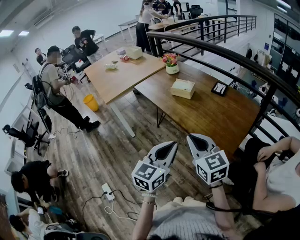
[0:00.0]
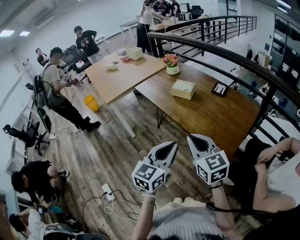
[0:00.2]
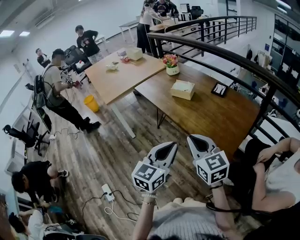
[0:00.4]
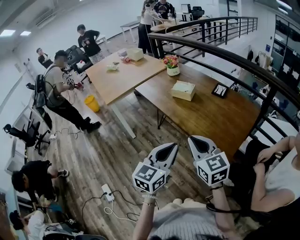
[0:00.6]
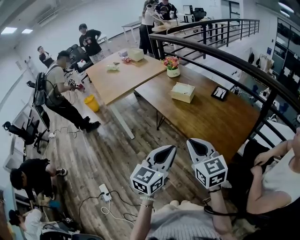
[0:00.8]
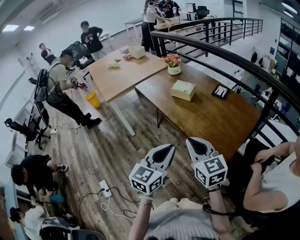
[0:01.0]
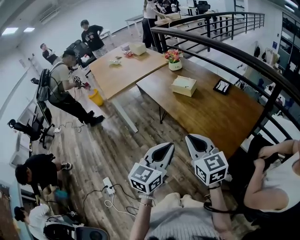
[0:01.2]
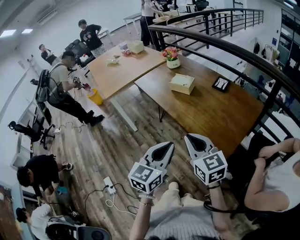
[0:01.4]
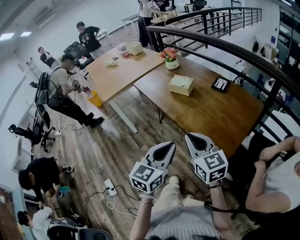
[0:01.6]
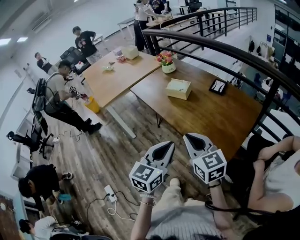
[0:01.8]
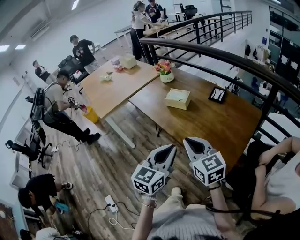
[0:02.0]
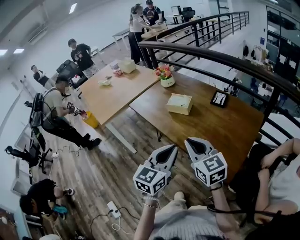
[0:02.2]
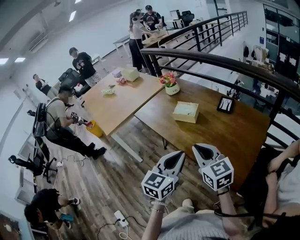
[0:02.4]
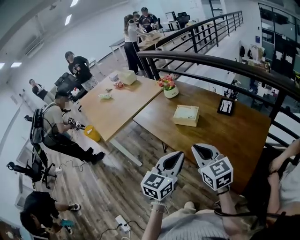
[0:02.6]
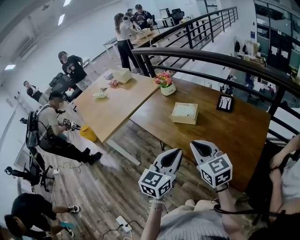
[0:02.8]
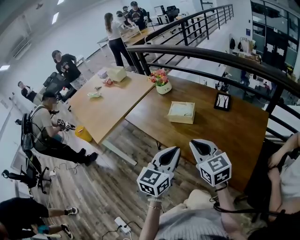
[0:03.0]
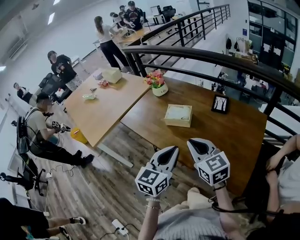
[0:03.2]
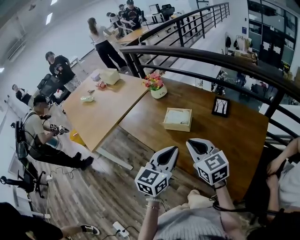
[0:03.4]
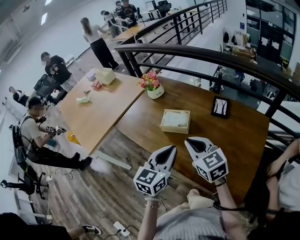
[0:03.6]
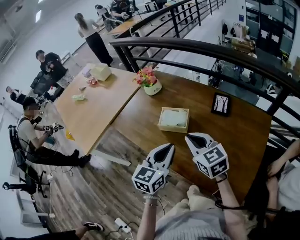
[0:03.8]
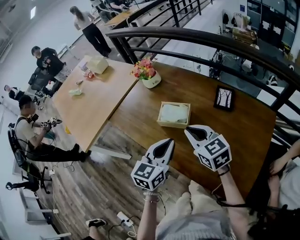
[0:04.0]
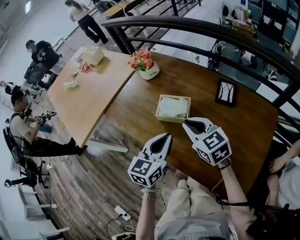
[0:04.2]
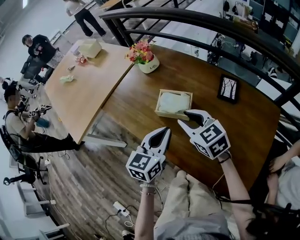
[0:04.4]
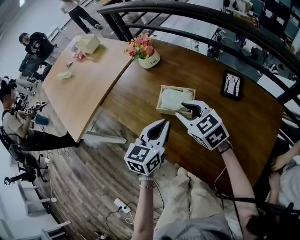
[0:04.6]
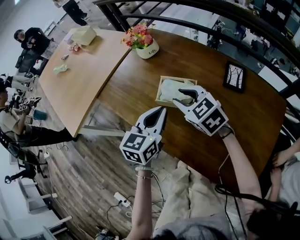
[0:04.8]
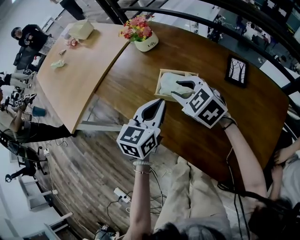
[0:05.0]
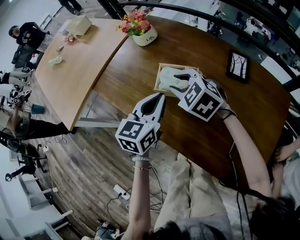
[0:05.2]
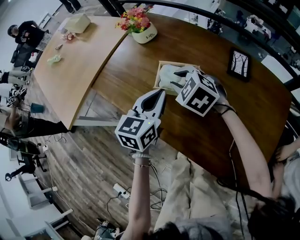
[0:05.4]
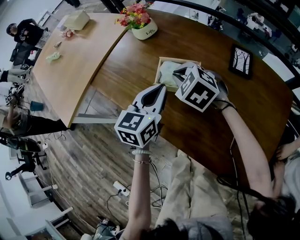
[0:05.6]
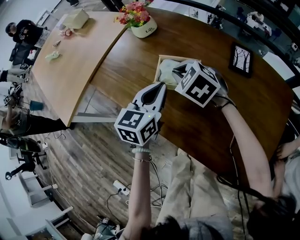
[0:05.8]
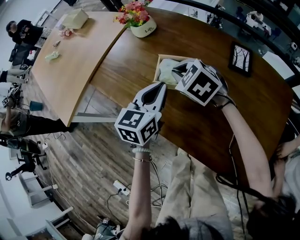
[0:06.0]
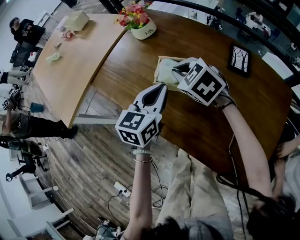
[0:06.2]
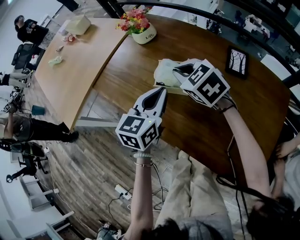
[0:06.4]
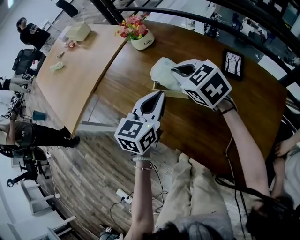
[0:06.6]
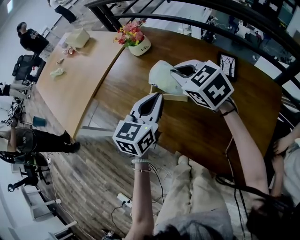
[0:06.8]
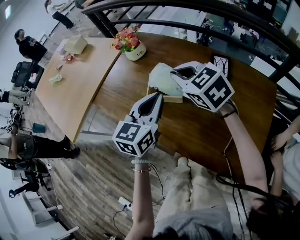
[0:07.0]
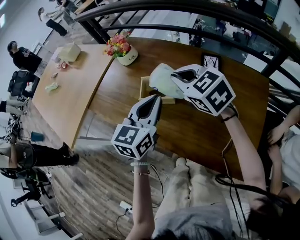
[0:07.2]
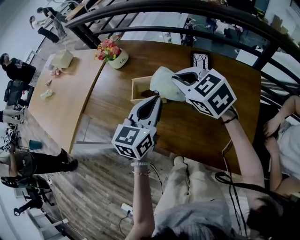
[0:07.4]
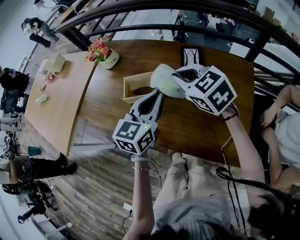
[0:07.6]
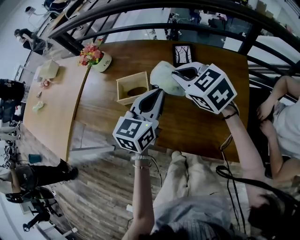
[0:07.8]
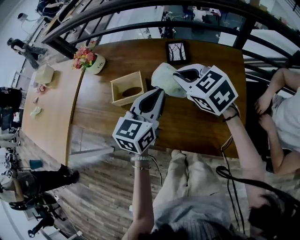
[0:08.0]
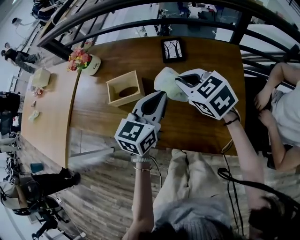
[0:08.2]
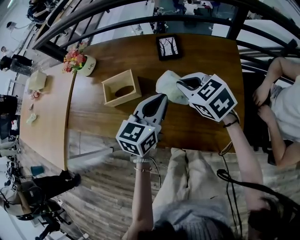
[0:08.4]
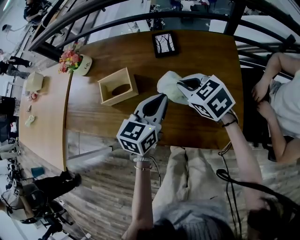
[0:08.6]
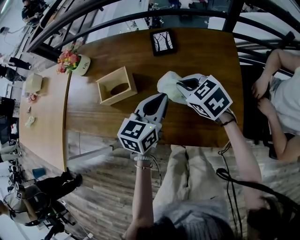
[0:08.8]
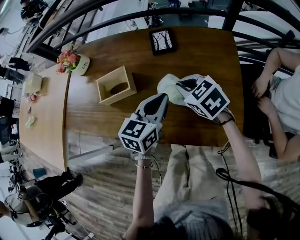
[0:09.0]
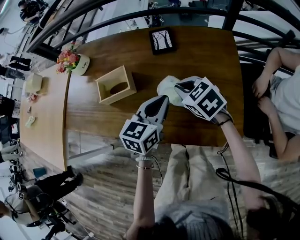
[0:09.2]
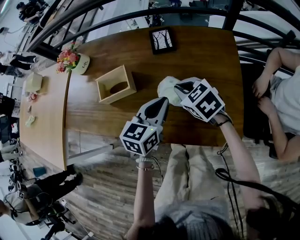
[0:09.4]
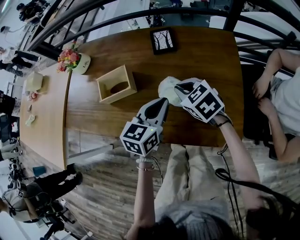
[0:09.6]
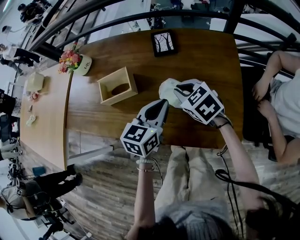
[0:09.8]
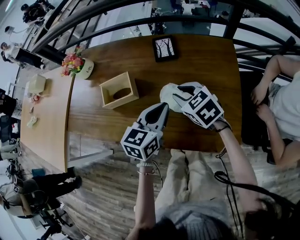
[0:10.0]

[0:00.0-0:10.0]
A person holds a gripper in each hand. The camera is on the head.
0:00.0 to 0:01.4: The grippers stay close to where they were, moving slightly.
0:01.4 to 0:02.8: Both grippers move forward, approximately 20 cm.
0:02.8 to 0:04.2: Both grippers travel together forward, approximately 20 cm.
0:04.2 to 0:05.8: The right gripper shifts roughly 15 cm forward, downward and to the left, turns by approximately 30 degrees, and opens, then closes once more; the left gripper heads forward and downward, covering approximately 10 cm.
0:05.8 to 0:07.2: The left gripper travels upward and to the right by roughly 10 cm; the right gripper shifts about 15 cm upward and to the right, and swivels some 20 degrees.
0:07.2 to 0:08.6: The right gripper moves to the right, downward and backward, approximately 20 cm, and changes its angle by roughly 20 degrees, while the left gripper shifts some 15 cm to the right and downward, and swivels roughly 20 degrees.
0:08.6 to 0:10.0: The right gripper opens.

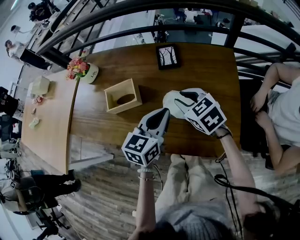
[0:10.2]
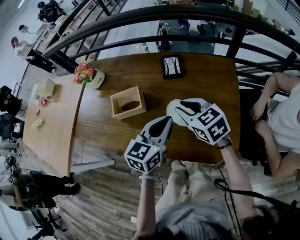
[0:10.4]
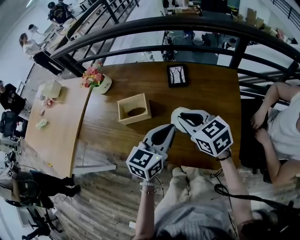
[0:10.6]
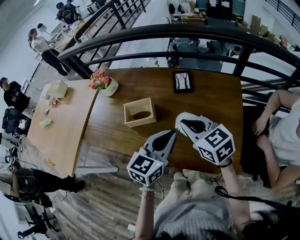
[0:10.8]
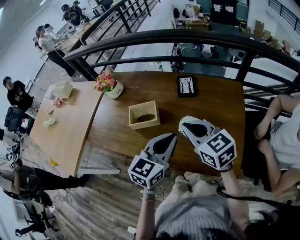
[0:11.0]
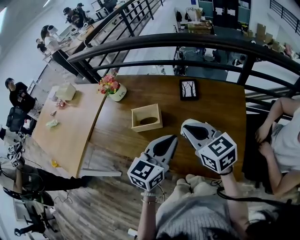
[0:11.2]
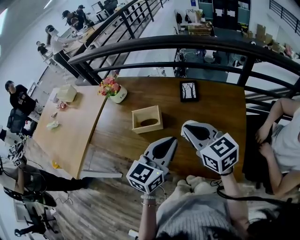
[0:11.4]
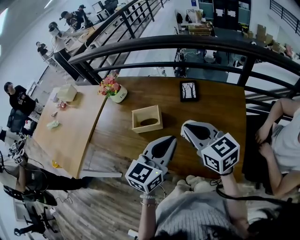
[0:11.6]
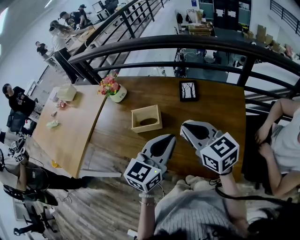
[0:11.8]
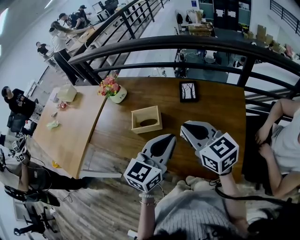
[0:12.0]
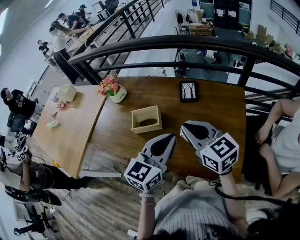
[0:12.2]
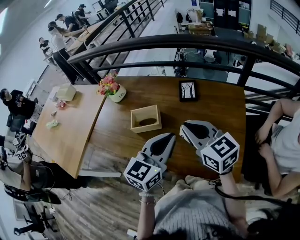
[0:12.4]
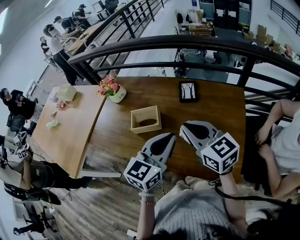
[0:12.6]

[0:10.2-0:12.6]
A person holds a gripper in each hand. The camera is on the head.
0:10.2 to 0:11.4: Both grippers move upward, approximately 10 cm. The right gripper turns by about 20 degrees, and closes.
0:11.4 to 0:12.6: The grippers make only small movements.

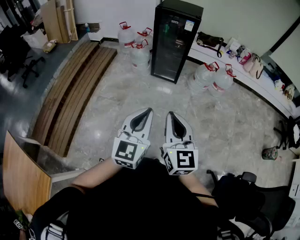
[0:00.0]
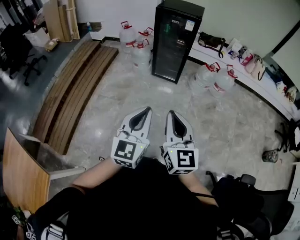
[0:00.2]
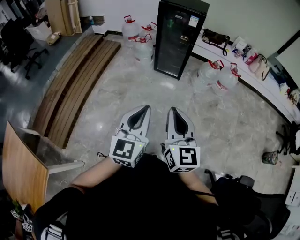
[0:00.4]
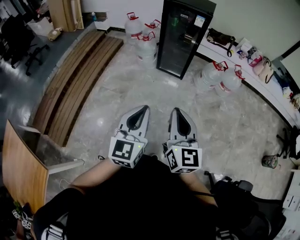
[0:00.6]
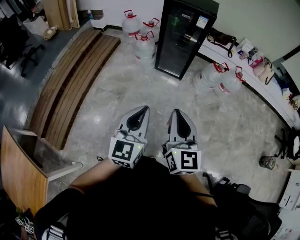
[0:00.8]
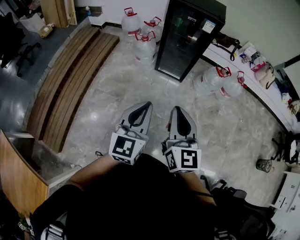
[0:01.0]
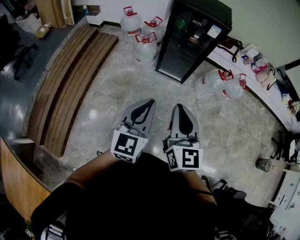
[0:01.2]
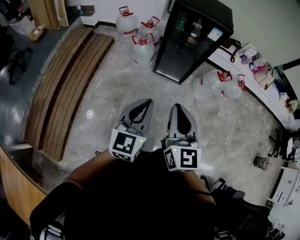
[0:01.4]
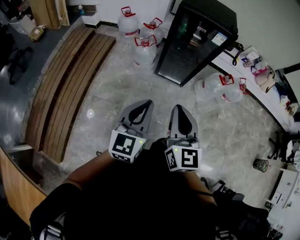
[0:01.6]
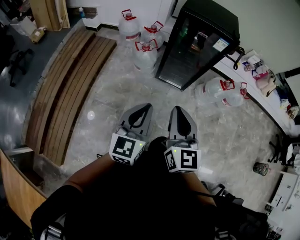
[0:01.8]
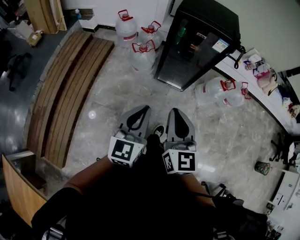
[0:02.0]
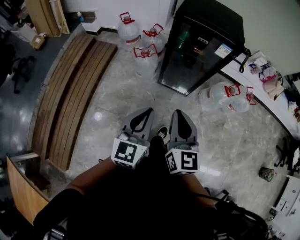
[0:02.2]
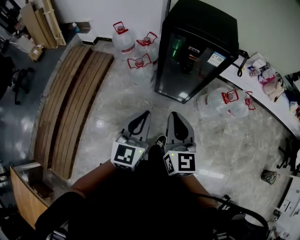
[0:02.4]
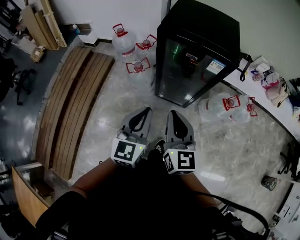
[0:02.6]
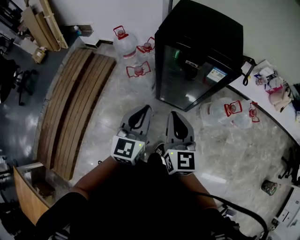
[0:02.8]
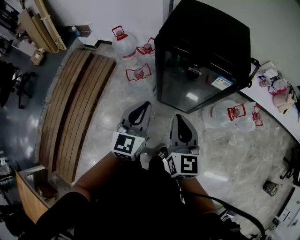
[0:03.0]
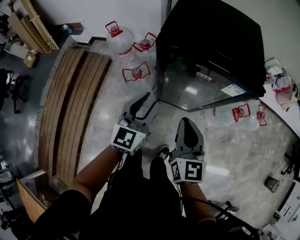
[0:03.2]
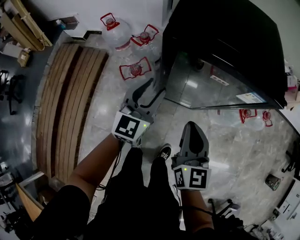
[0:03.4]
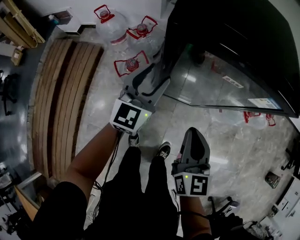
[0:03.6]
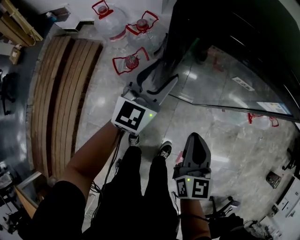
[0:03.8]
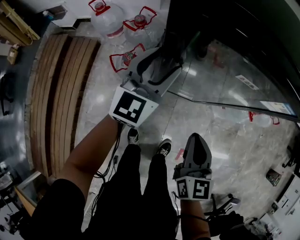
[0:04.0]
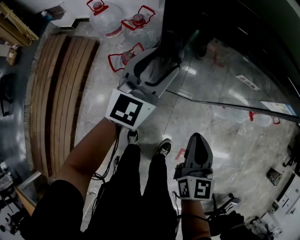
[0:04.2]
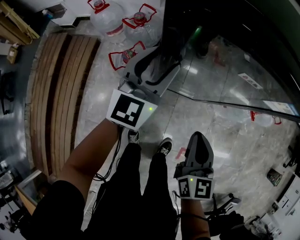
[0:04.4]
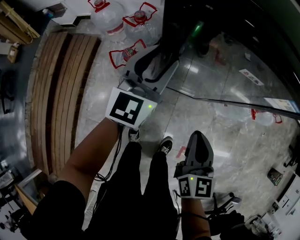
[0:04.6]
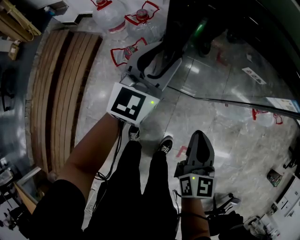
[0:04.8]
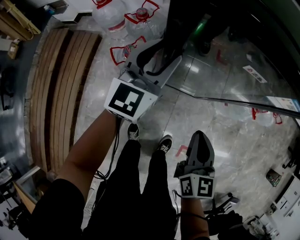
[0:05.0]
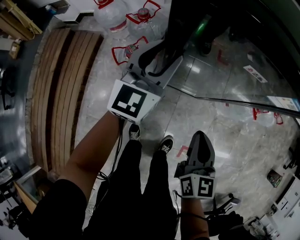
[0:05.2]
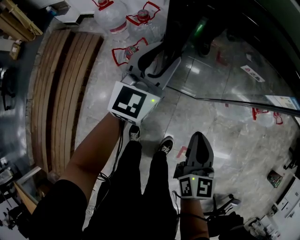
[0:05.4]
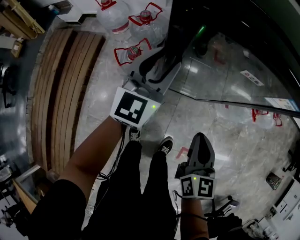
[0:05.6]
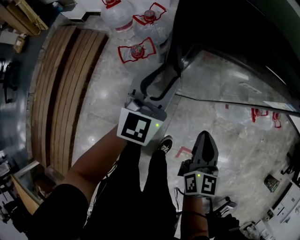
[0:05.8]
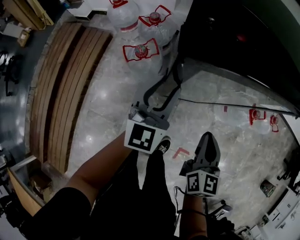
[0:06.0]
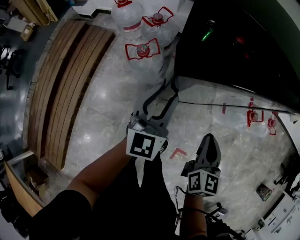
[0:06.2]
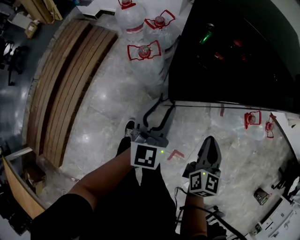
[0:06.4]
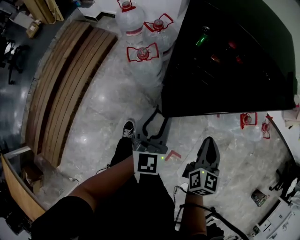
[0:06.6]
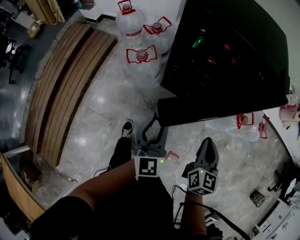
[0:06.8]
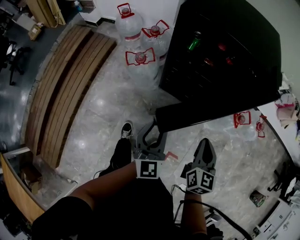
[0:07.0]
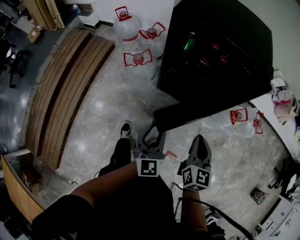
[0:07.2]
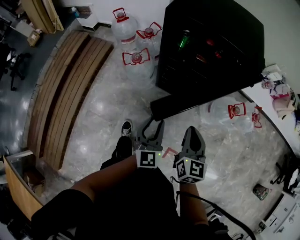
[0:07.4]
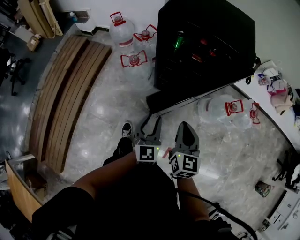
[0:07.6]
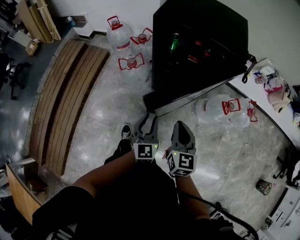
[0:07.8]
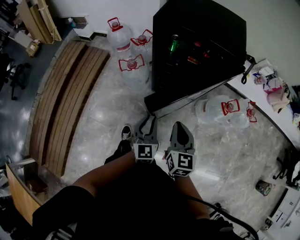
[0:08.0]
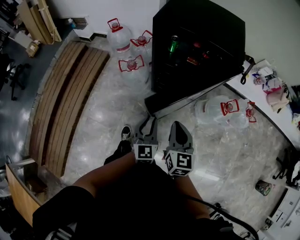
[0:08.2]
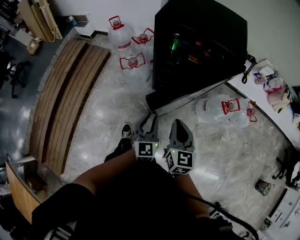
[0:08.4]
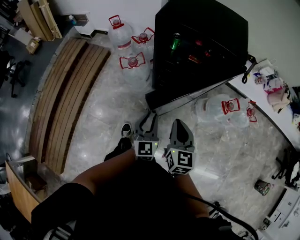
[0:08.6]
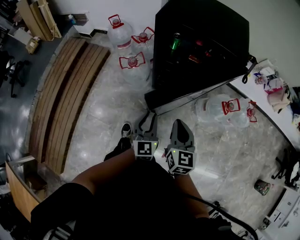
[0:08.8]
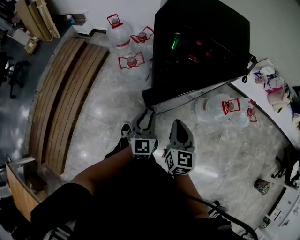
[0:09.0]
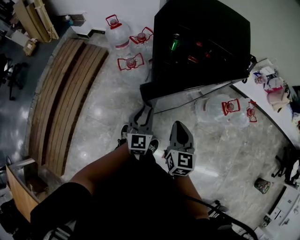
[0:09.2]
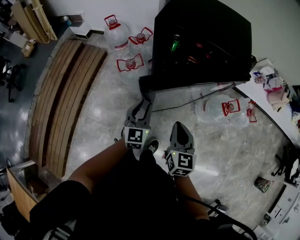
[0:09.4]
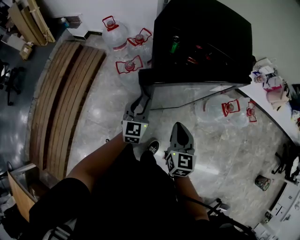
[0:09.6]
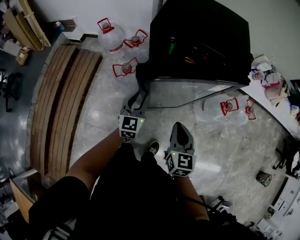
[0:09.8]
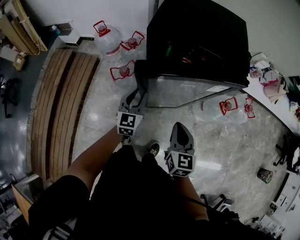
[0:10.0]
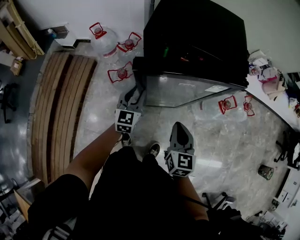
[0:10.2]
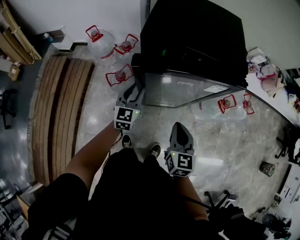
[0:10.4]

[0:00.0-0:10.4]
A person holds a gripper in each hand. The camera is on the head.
0:00.0 to 0:01.4: The grippers both shift forward by some 35 cm.
0:01.4 to 0:03.0: The pair of grippers is taken forward, approximately 40 cm.
0:03.0 to 0:04.4: The right gripper shifts some 25 cm downward. The left gripper shifts roughly 30 cm forward and downward, and opens.
0:04.4 to 0:06.0: The left gripper shifts some 10 cm backward. Meanwhile the right gripper changes place by approximately 5 cm.
0:06.0 to 0:07.4: The right gripper moves upward and backward, some 10 cm. The left gripper is displaced backward by some 20 cm.
0:07.4 to 0:09.0: The grippers make only small movements.
0:09.0 to 0:10.4: The right gripper moves forward, some 10 cm. Meanwhile the left gripper moves forward, approximately 20 cm.

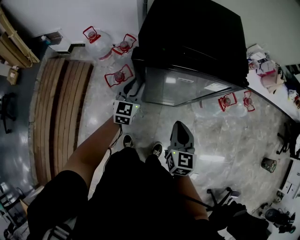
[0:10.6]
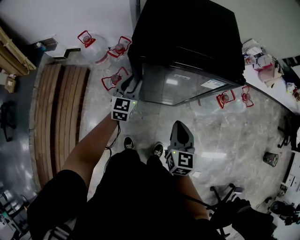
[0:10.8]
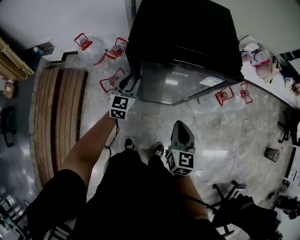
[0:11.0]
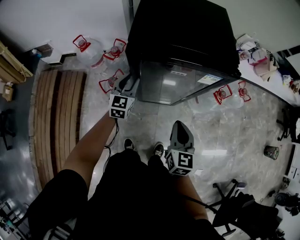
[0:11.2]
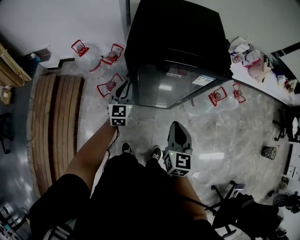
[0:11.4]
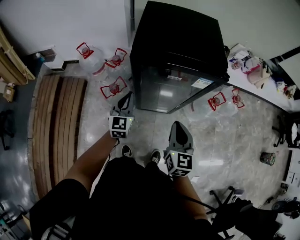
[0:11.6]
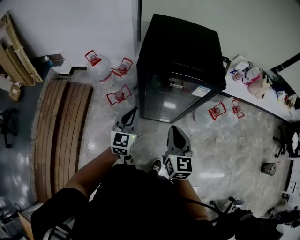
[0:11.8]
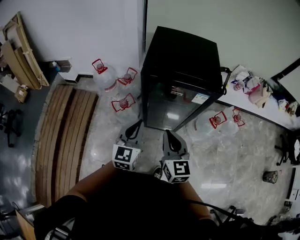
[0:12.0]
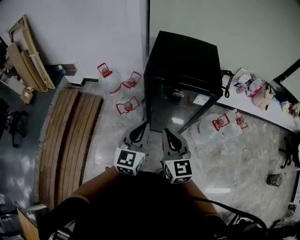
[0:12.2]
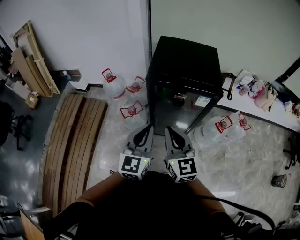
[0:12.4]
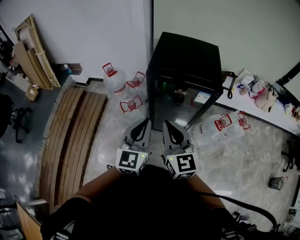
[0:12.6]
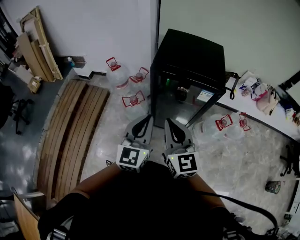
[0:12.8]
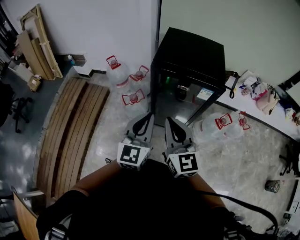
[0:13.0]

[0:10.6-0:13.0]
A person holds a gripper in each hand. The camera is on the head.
0:10.6 to 0:11.8: The right gripper shifts roughly 10 cm upward. The left gripper shifts some 15 cm backward and upward, and closes.
0:11.8 to 0:13.0: The left gripper heads upward and backward, covering about 20 cm, while the right gripper is displaced upward by approximately 15 cm, and changes its angle by some 20 degrees.
